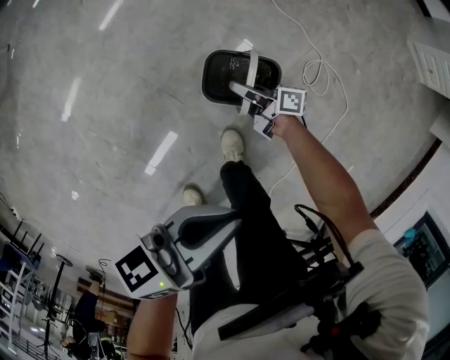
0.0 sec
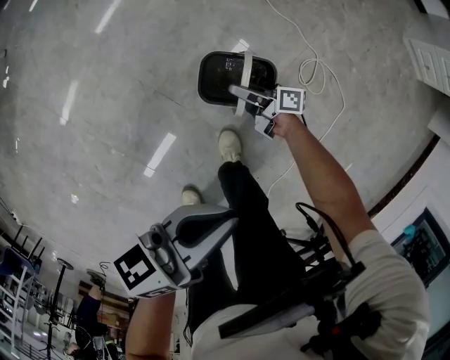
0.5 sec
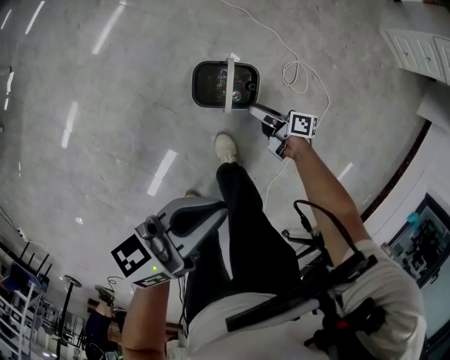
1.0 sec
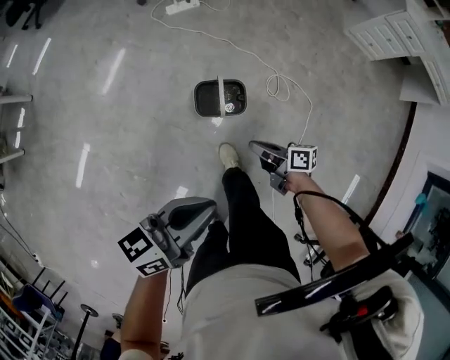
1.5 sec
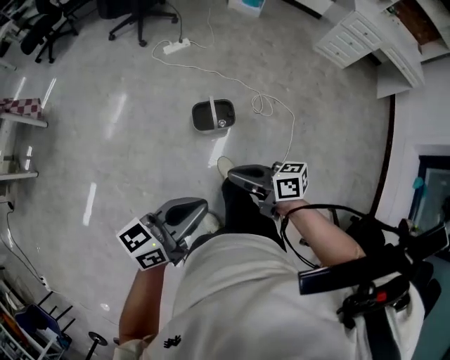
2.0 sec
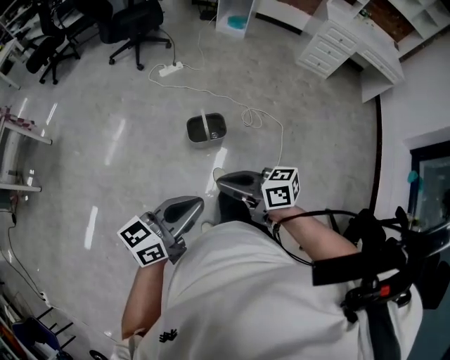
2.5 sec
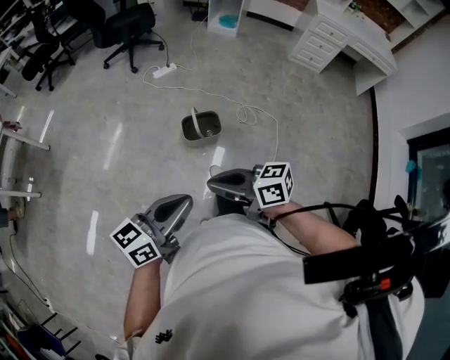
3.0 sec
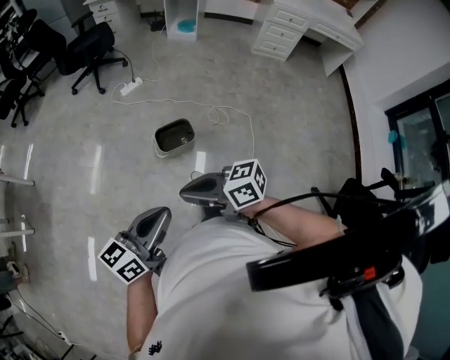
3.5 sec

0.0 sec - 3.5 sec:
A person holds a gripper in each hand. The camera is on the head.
0.0 sec - 2.0 sec: The right gripper heads upward, covering some 50 cm, turns by about 30 degrees, and opens, then closes once more, while the left gripper shifts approximately 25 cm upward, and changes its angle by about 30 degrees.
2.0 sec - 3.5 sec: The right gripper moves roughly 15 cm, while the left gripper moves some 10 cm.

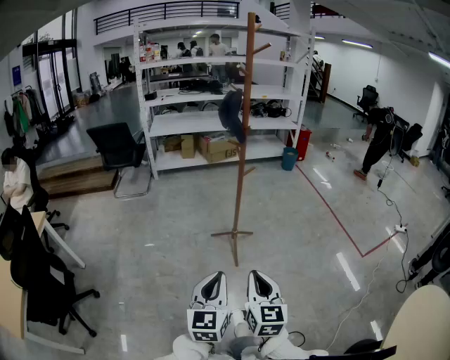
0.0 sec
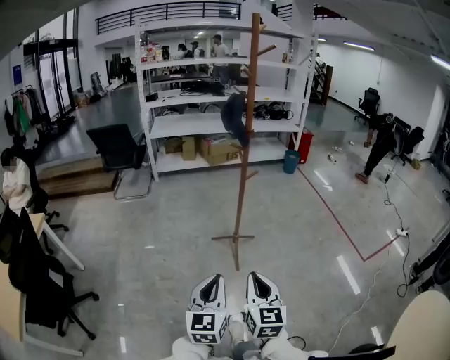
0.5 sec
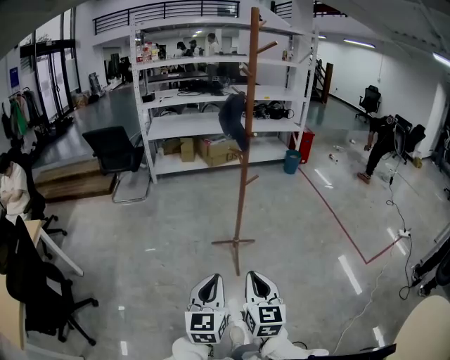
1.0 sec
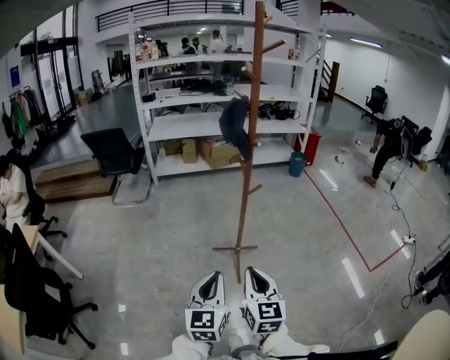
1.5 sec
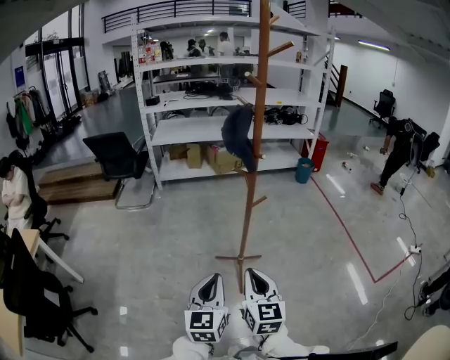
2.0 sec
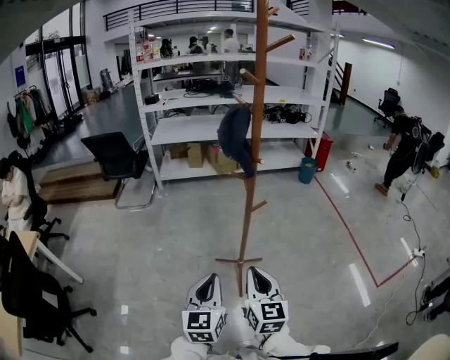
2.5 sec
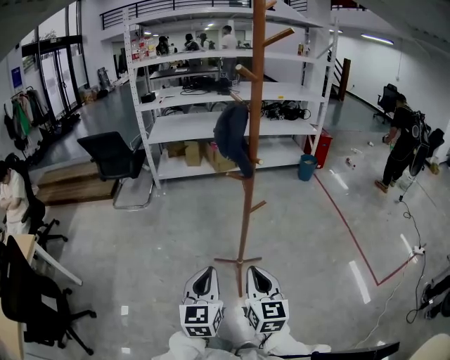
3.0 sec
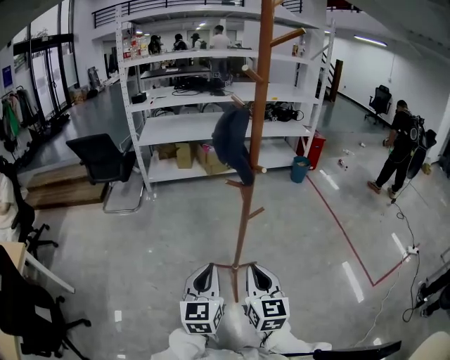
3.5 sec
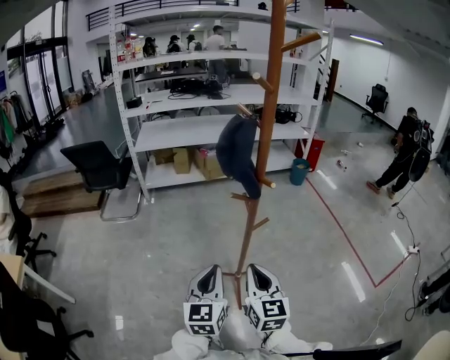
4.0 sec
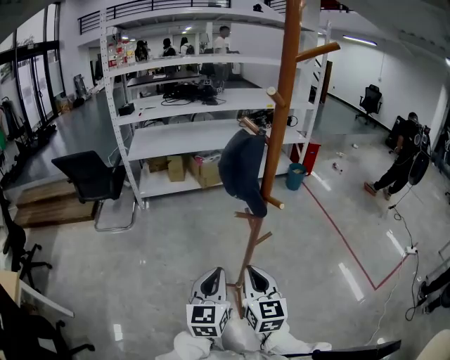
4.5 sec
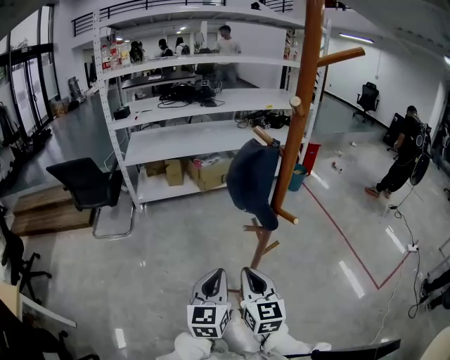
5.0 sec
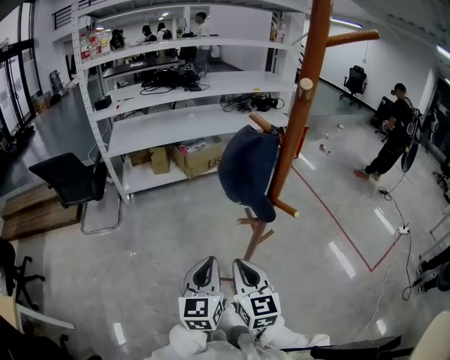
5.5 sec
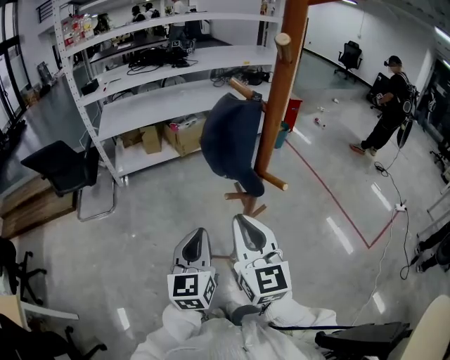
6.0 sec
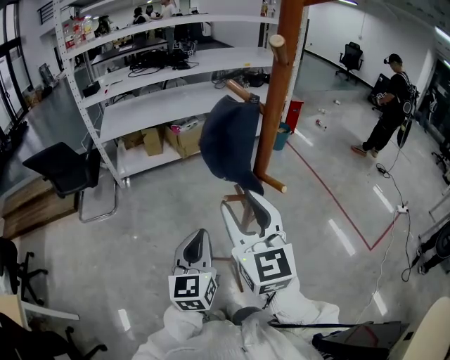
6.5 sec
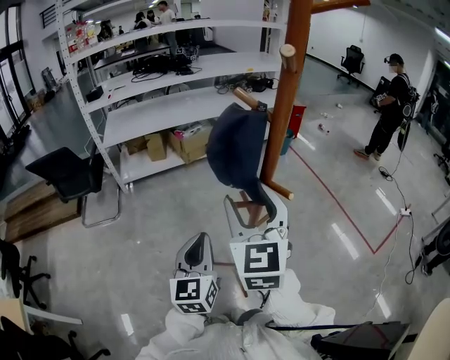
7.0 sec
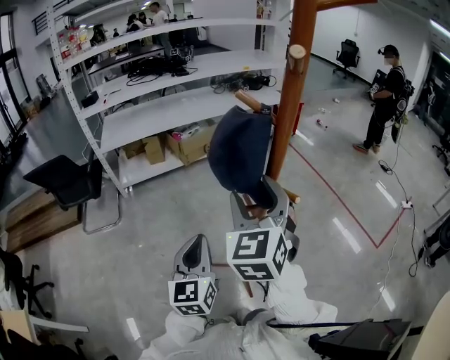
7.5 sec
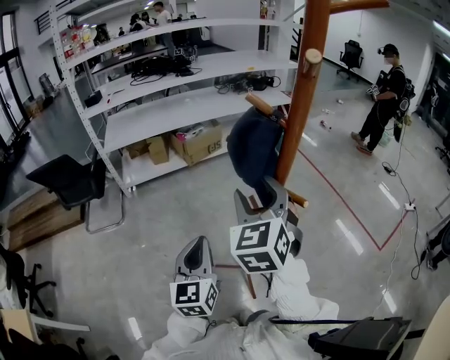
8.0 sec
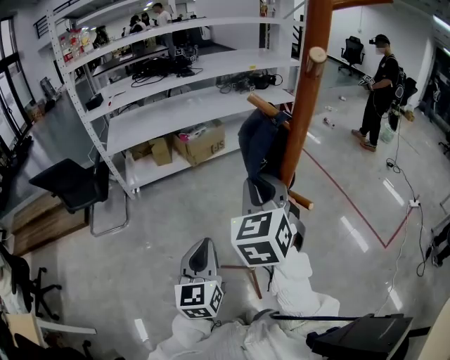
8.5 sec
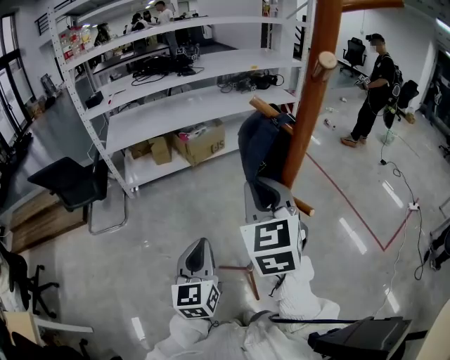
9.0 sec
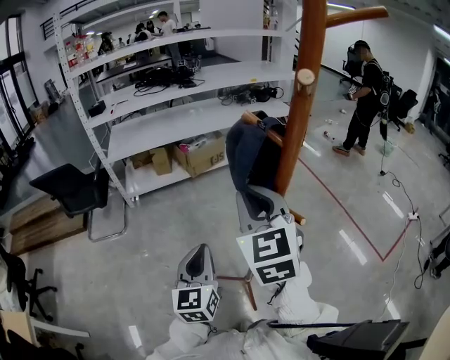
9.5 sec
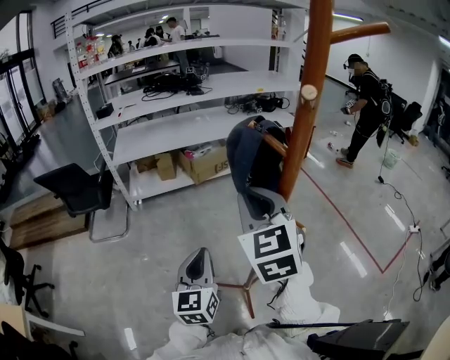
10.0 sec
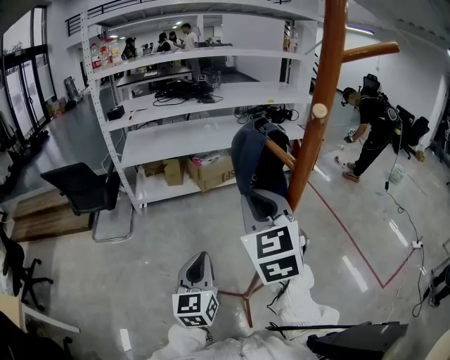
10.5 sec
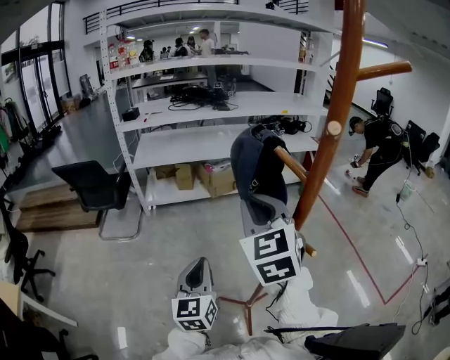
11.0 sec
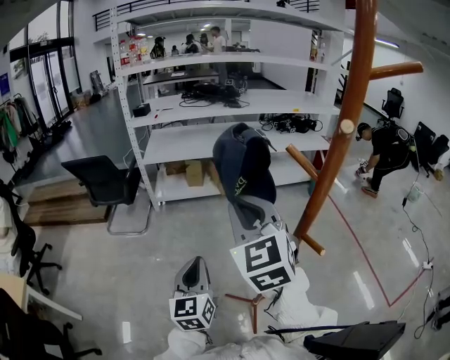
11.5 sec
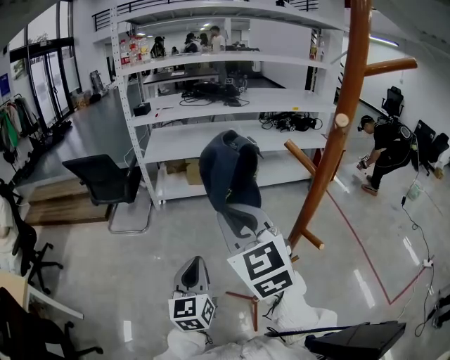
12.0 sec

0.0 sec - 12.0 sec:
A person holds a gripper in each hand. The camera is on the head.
0.0 sec - 2.0 sec: Both grippers travel together forward, some 20 cm.
2.0 sec - 4.0 sec: Both grippers move forward, approximately 15 cm.
4.0 sec - 6.0 sec: The right gripper travels forward and upward by roughly 15 cm. Meanwhile the left gripper travels forward by roughly 15 cm.
6.0 sec - 8.0 sec: The right gripper goes approximately 10 cm forward, changes its angle by approximately 30 degrees, and opens.
8.0 sec - 10.0 sec: The right gripper ends up some 5 cm from where it was, and closes up.
10.0 sec - 12.0 sec: The right gripper travels to the left by roughly 10 cm, and turns by about 20 degrees. Meanwhile the left gripper travels to the left by approximately 5 cm.

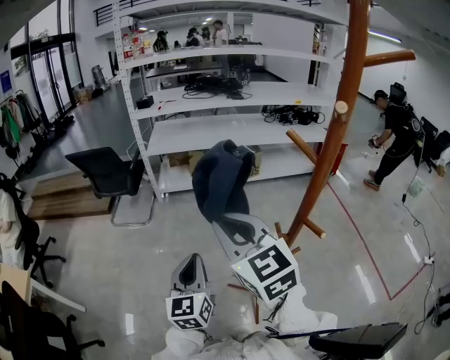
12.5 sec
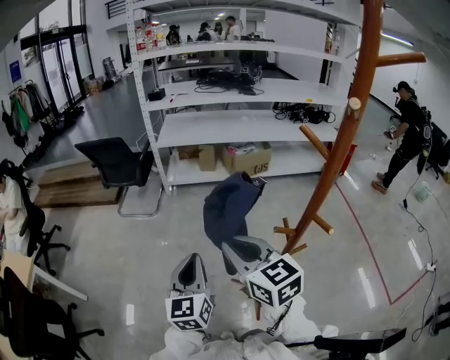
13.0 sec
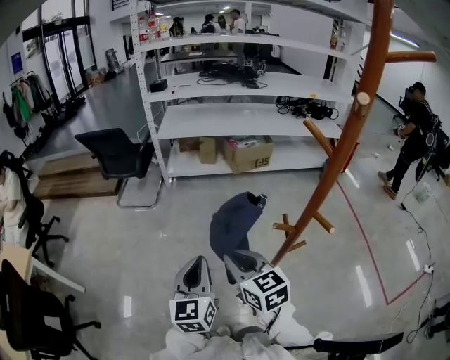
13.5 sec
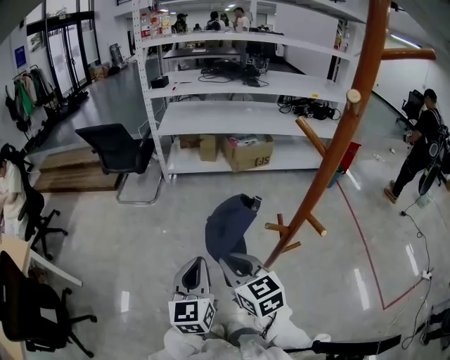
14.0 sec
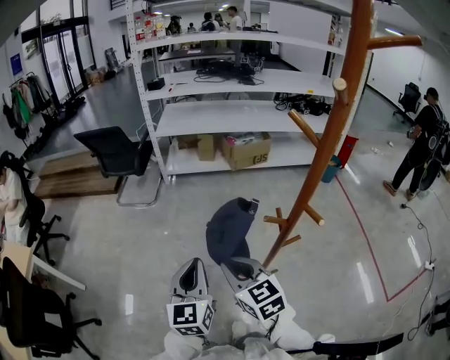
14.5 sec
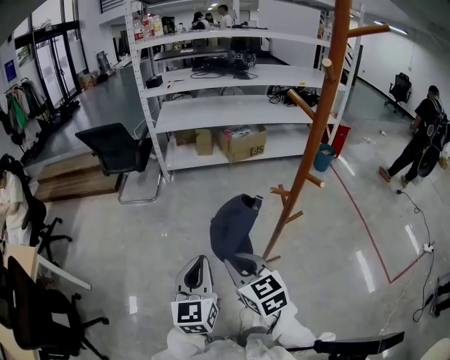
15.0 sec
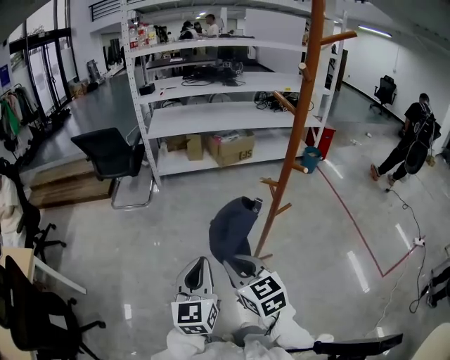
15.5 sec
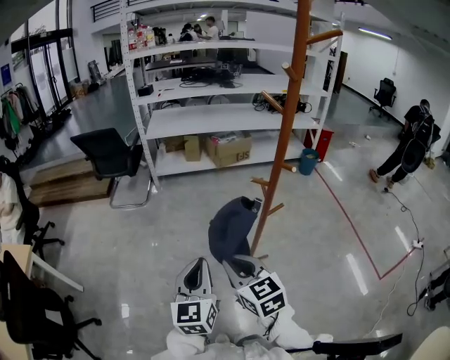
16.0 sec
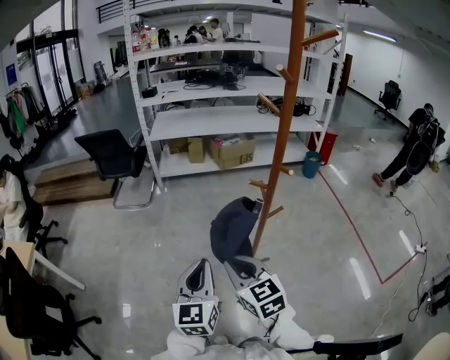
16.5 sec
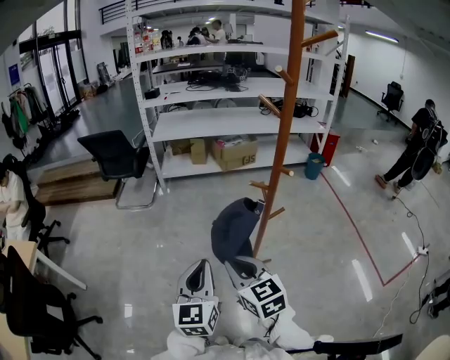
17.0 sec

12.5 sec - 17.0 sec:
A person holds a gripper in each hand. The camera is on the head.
12.5 sec - 14.5 sec: The right gripper heads downward and backward, covering some 20 cm. Meanwhile the left gripper is displaced backward by some 5 cm.
14.5 sec - 17.0 sec: Both grippers travel together backward, some 15 cm.

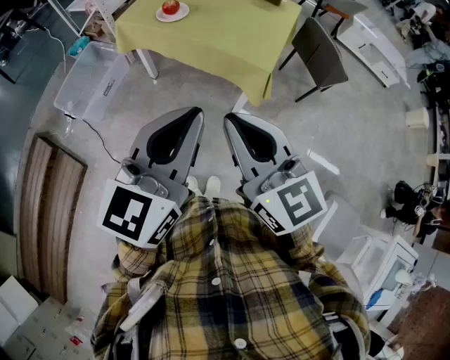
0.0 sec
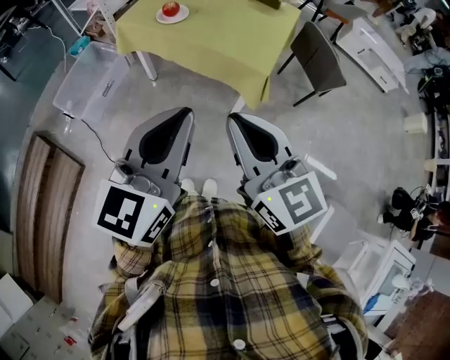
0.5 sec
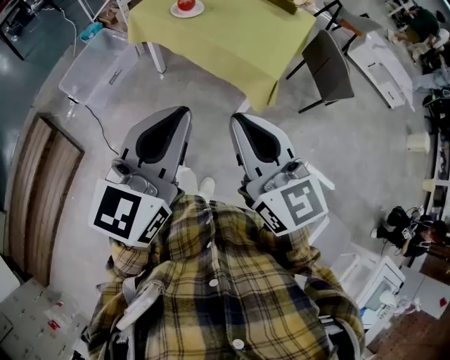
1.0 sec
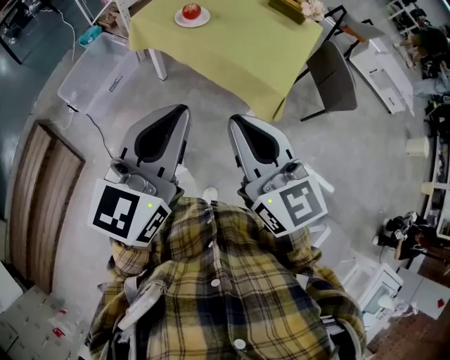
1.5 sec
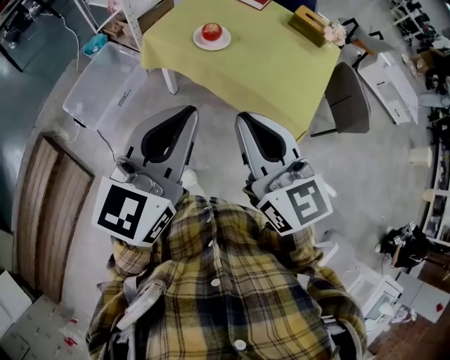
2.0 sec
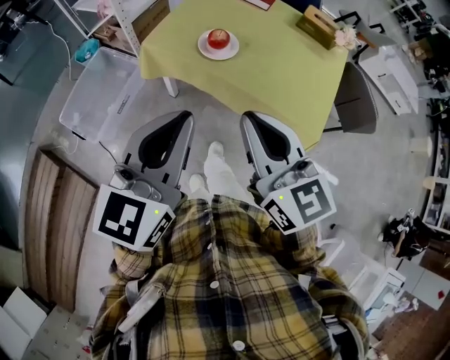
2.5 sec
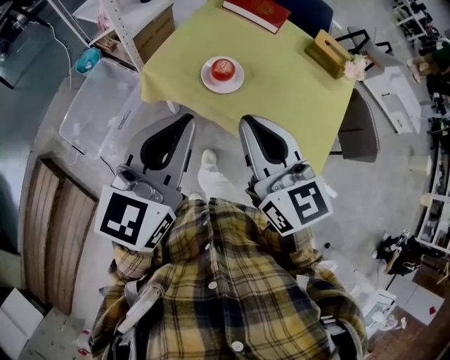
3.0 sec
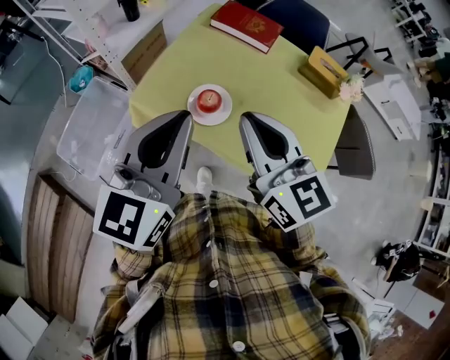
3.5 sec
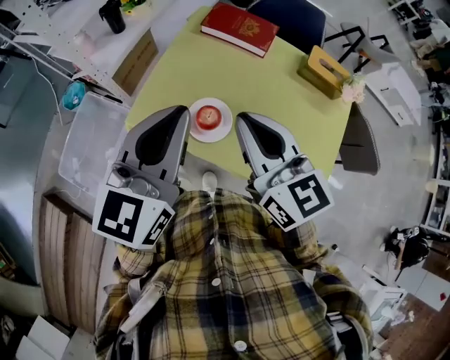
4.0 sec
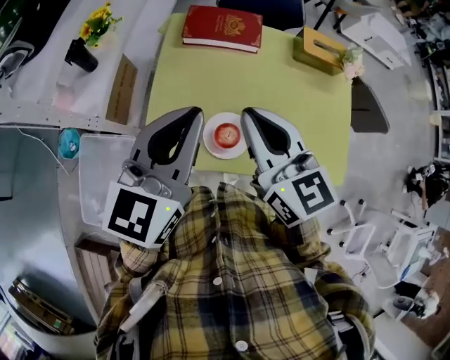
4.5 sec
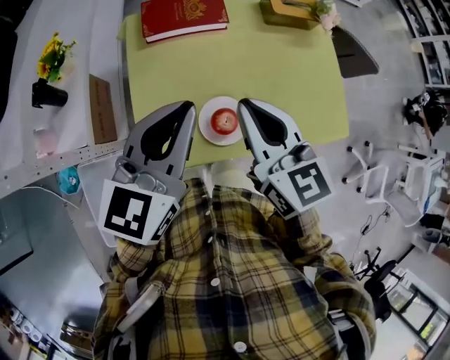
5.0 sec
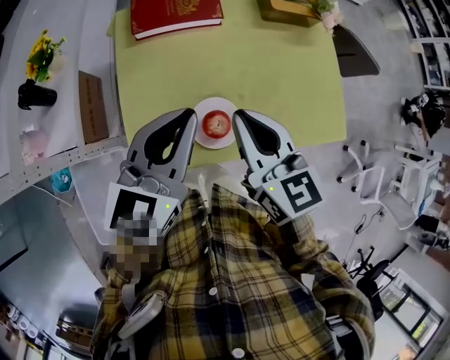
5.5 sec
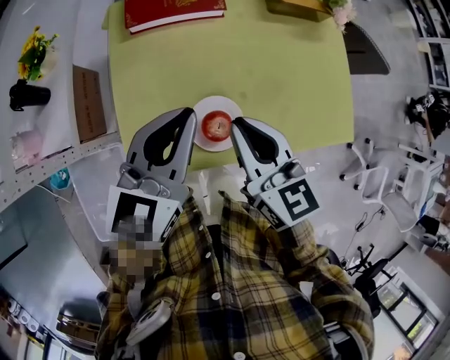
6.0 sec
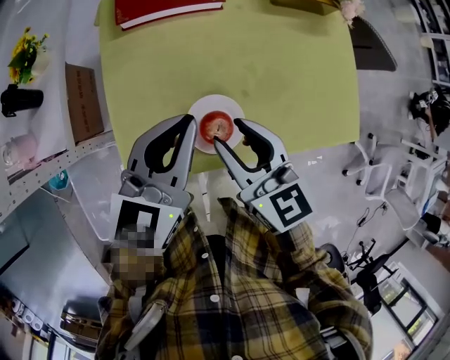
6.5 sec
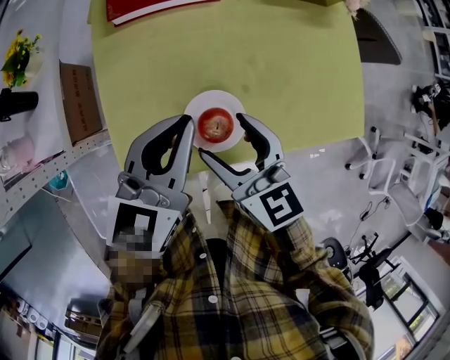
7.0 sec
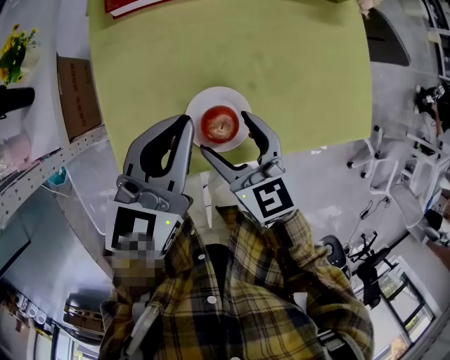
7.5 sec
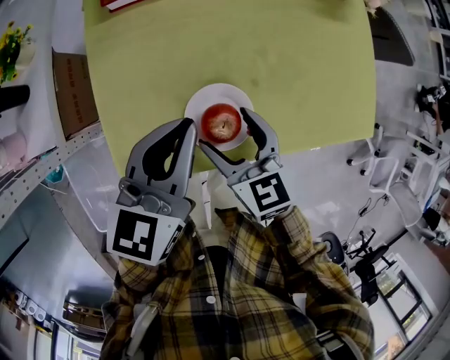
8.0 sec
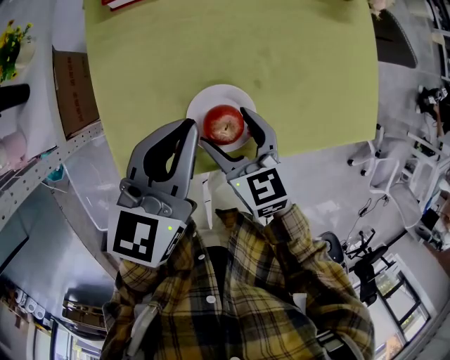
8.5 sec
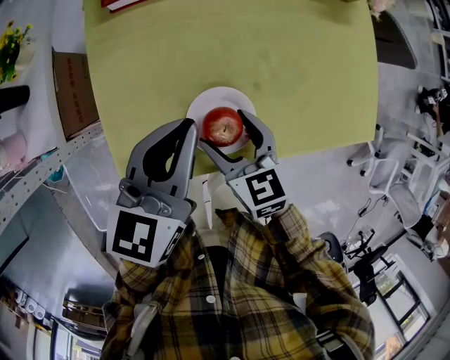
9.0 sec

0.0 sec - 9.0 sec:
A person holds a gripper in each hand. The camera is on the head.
0.0 sec - 2.0 sec: Both grippers move forward and to the left, roughly 25 cm.
2.0 sec - 4.5 sec: The pair of grippers is taken forward, roughly 50 cm. The left gripper swivels about 20 degrees; the right gripper rotates approximately 30 degrees.
4.5 sec - 7.0 sec: The two grippers go about 15 cm downward. The right gripper opens up. Meanwhile the left gripper swivels about 20 degrees.
7.0 sec - 9.0 sec: The right gripper heads downward, covering roughly 10 cm.
